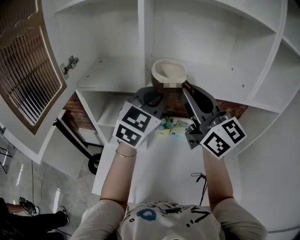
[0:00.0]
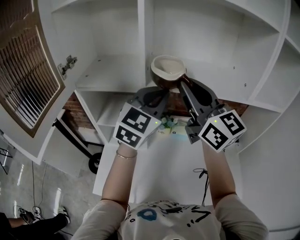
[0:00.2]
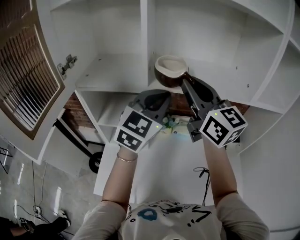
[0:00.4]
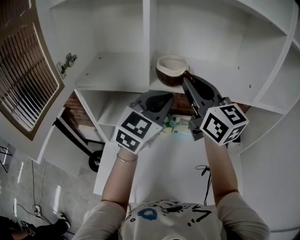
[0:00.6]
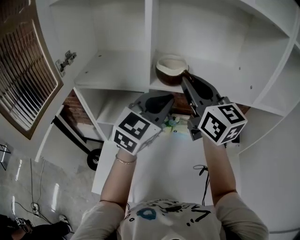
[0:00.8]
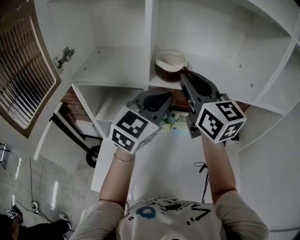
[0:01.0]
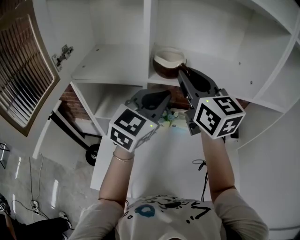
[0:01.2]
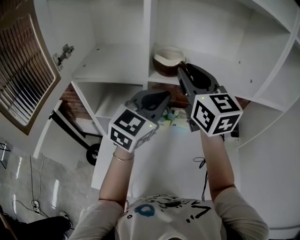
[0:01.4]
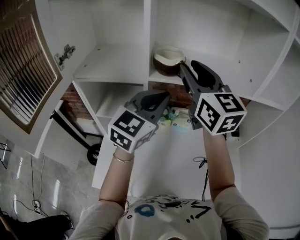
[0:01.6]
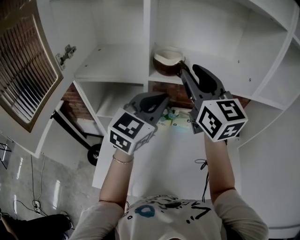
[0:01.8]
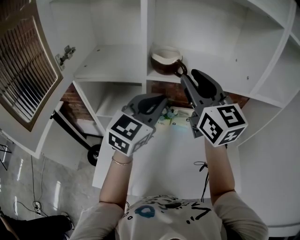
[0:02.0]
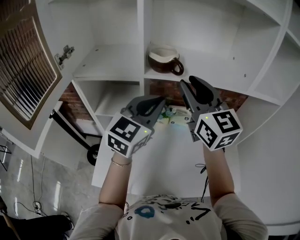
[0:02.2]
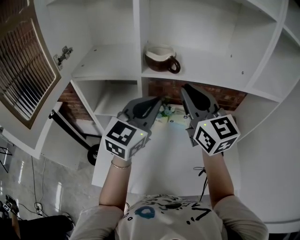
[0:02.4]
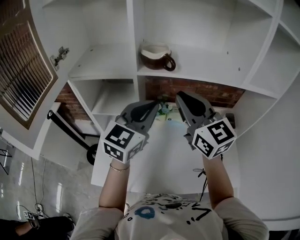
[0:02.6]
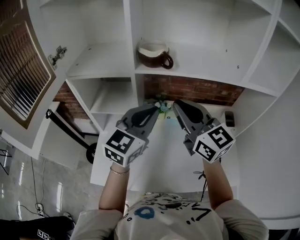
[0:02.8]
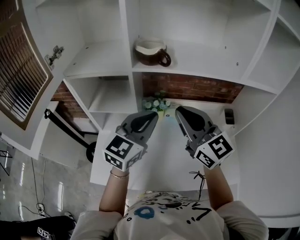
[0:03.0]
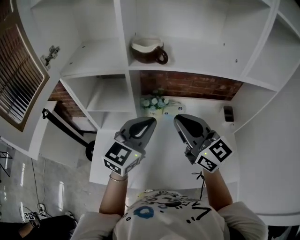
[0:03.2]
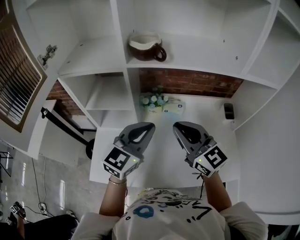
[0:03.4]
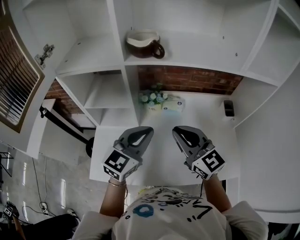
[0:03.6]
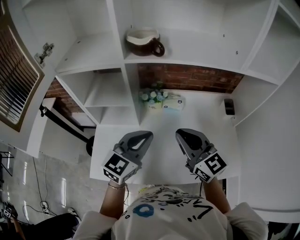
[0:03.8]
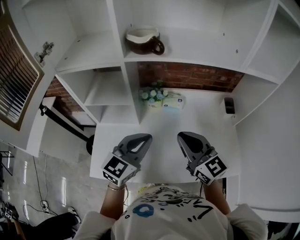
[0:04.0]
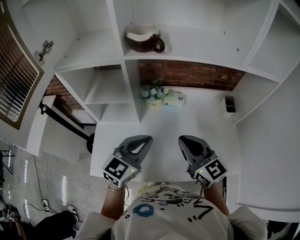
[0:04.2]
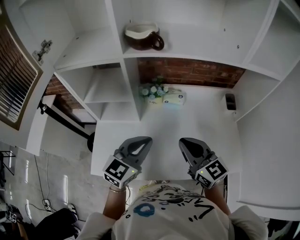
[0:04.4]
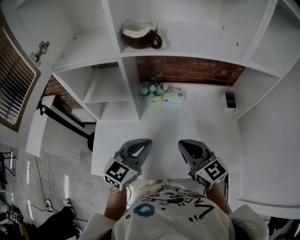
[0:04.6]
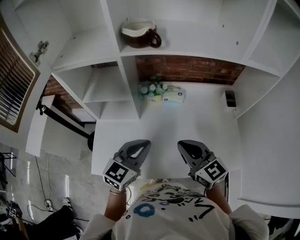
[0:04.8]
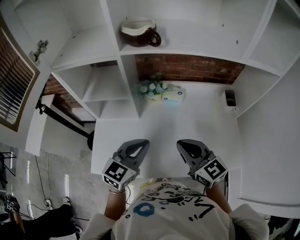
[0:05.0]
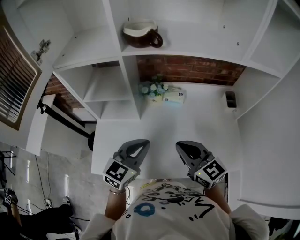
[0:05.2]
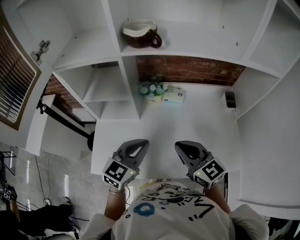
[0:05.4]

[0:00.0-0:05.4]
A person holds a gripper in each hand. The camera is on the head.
0:00.0 to 0:01.4: The right gripper is displaced forward by roughly 10 cm, and rotates approximately 20 degrees.
0:01.4 to 0:02.8: The left gripper is displaced backward by roughly 5 cm. Meanwhile the right gripper goes approximately 15 cm backward and downward.
0:02.8 to 0:04.0: The grippers both shift downward and backward by about 15 cm.
0:04.0 to 0:05.4: The right gripper heads downward, covering roughly 5 cm.

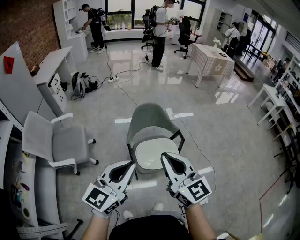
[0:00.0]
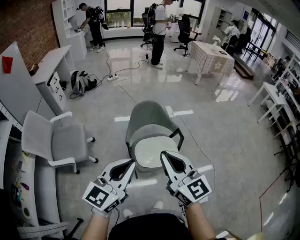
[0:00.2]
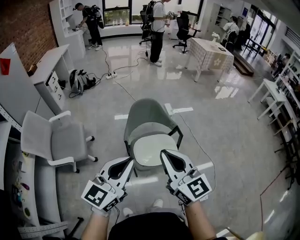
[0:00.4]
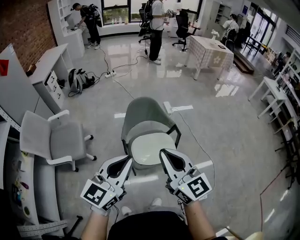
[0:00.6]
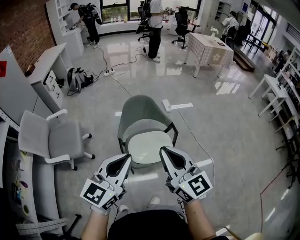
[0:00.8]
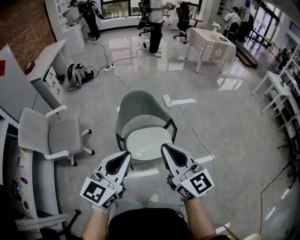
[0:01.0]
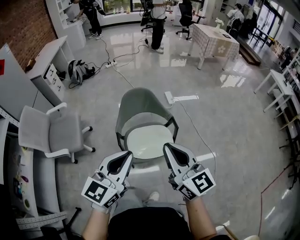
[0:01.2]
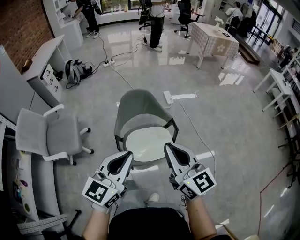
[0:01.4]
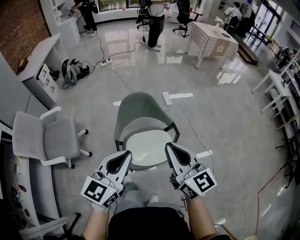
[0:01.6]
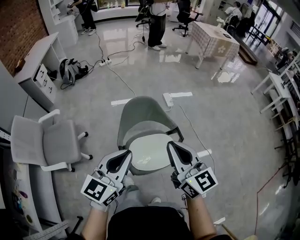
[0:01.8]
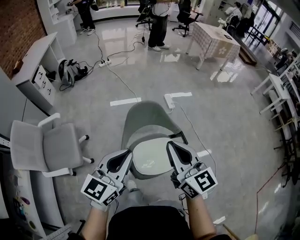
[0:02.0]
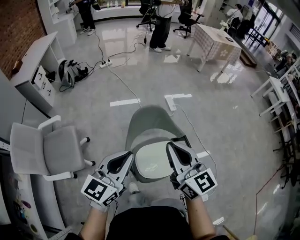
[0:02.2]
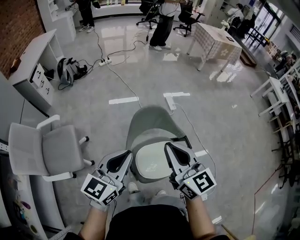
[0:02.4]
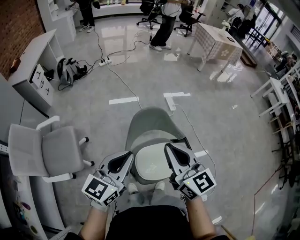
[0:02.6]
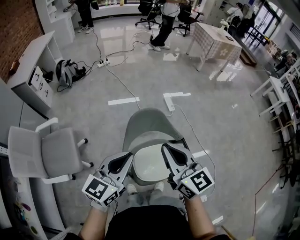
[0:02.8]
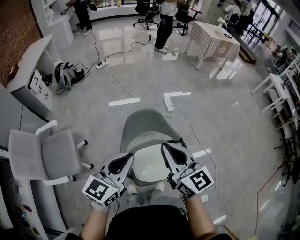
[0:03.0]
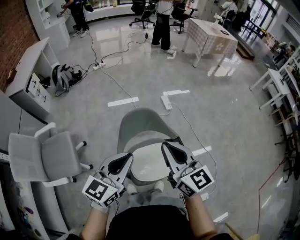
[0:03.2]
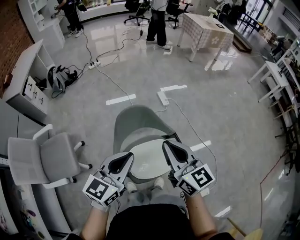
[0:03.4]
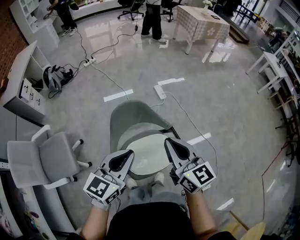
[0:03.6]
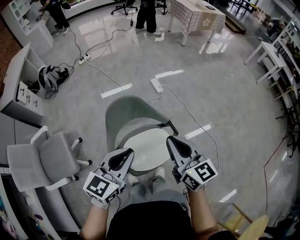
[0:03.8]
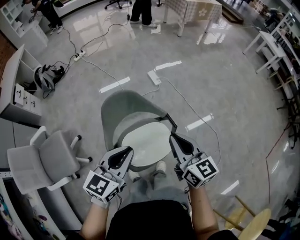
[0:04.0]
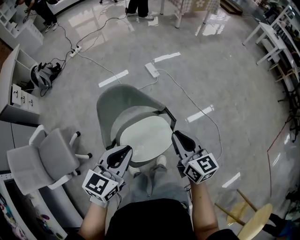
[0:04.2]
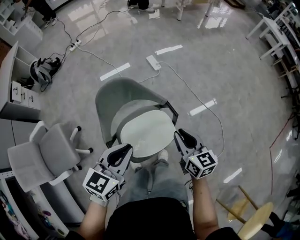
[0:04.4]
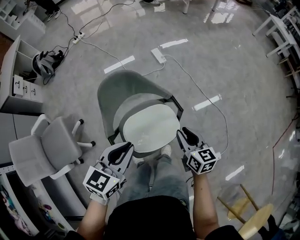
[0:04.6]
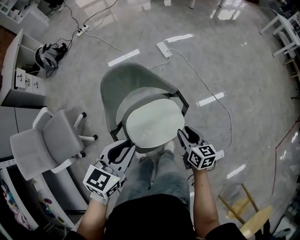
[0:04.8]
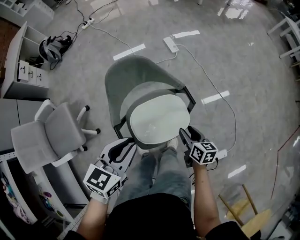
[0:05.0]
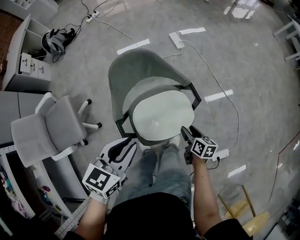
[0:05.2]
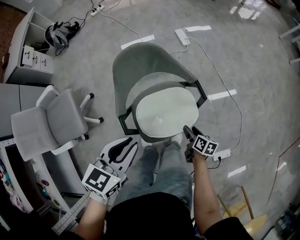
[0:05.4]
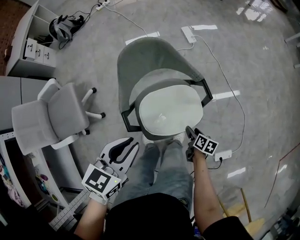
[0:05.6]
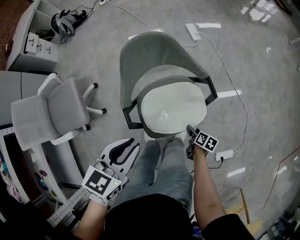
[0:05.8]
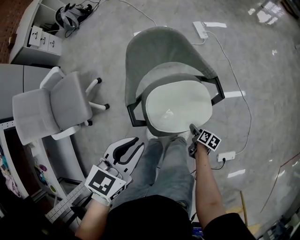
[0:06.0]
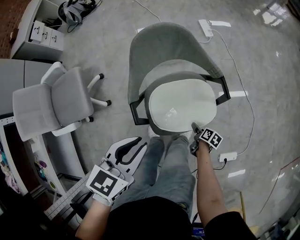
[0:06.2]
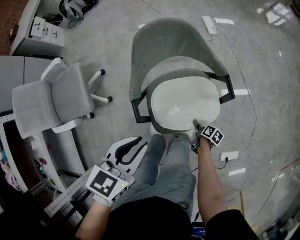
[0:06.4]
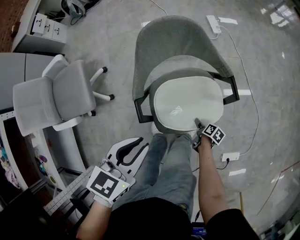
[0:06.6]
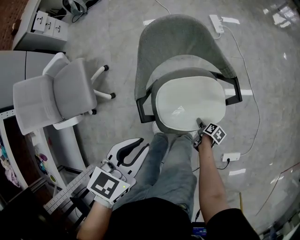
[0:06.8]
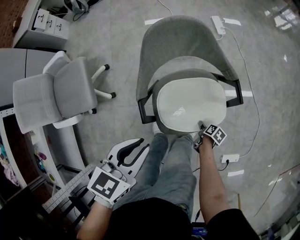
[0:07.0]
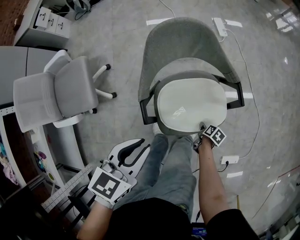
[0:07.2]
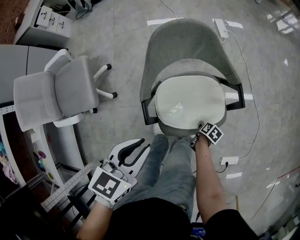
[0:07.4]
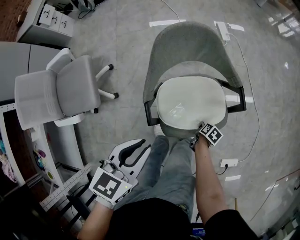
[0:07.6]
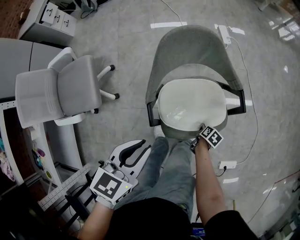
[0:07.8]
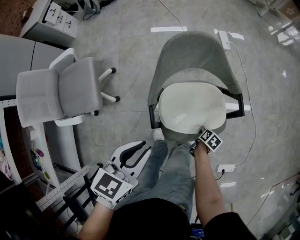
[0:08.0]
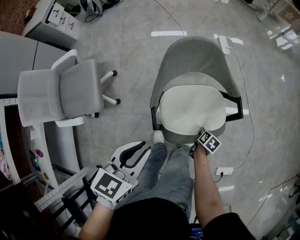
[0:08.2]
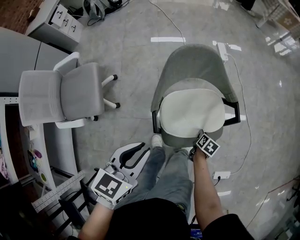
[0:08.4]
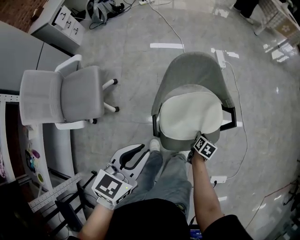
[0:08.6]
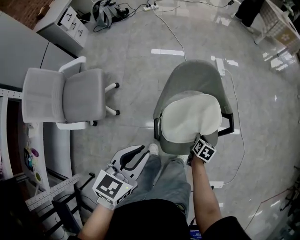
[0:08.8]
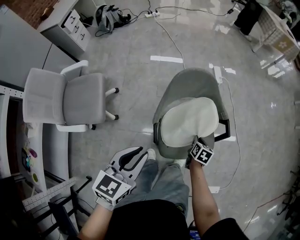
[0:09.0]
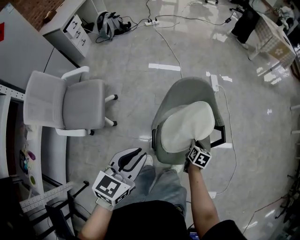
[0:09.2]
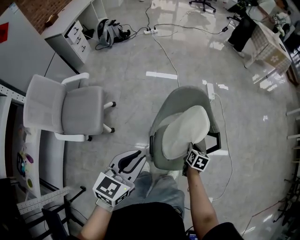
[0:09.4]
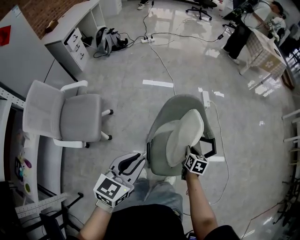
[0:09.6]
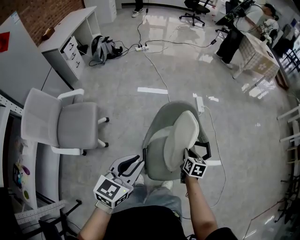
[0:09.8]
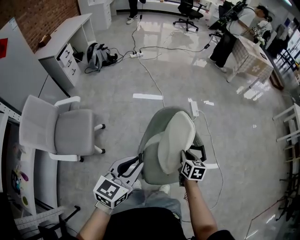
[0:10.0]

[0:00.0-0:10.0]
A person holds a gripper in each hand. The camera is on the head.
0:00.0 to 0:01.4: The two grippers go approximately 15 cm to the right and forward.
0:01.4 to 0:02.8: Both grippers travel together forward and to the left, approximately 25 cm.
0:02.8 to 0:04.2: The right gripper is displaced to the right and downward by about 25 cm, and turns by roughly 20 degrees, while the left gripper goes some 15 cm to the right and downward.
0:04.2 to 0:05.8: The right gripper is displaced downward by some 40 cm, angles its fingers downward, by some 40 degrees, and opens. The left gripper is displaced downward, backward and to the left by roughly 15 cm.
0:05.8 to 0:07.2: The left gripper ends up about 5 cm from where it was; the right gripper shifts roughly 10 cm downward.
0:07.2 to 0:08.6: The right gripper goes roughly 15 cm upward, forward and to the left, changes its angle by some 30 degrees, and closes up, while the left gripper heads upward and to the left, covering approximately 5 cm.
0:08.6 to 0:10.0: The left gripper travels upward by some 10 cm; the right gripper is displaced upward by some 25 cm, and changes its angle by approximately 30 degrees.

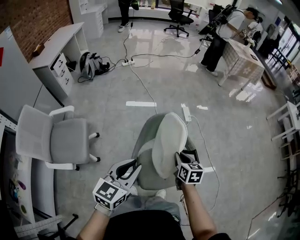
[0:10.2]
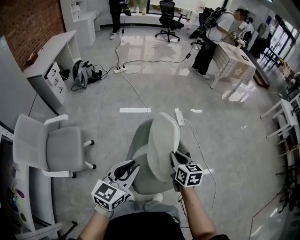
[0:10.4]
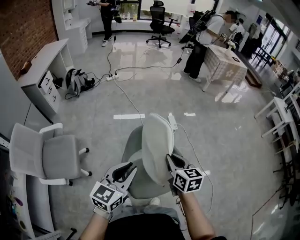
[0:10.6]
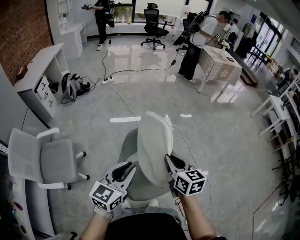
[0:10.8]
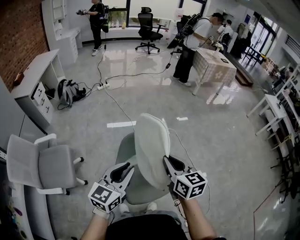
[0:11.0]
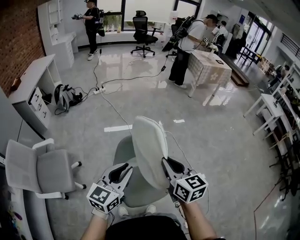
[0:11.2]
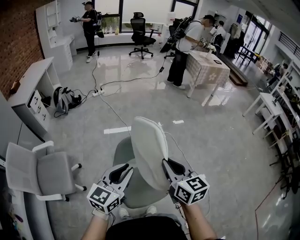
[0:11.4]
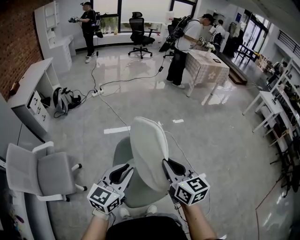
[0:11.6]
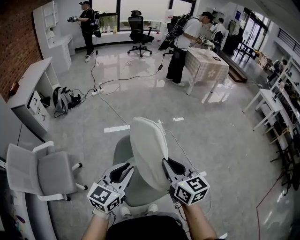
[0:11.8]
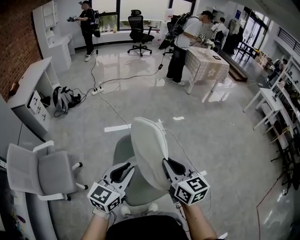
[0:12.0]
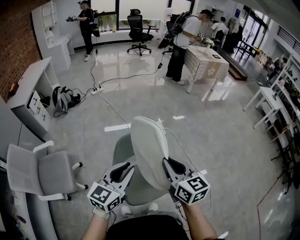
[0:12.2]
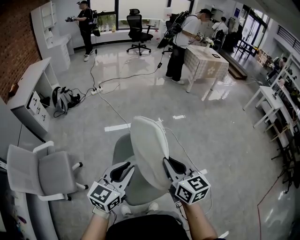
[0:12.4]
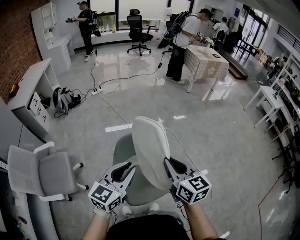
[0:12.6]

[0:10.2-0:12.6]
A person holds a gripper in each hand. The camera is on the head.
0:10.2 to 0:11.4: The right gripper shifts roughly 25 cm upward, and changes its angle by about 20 degrees; the left gripper travels to the right, upward and forward by approximately 15 cm.
0:11.4 to 0:12.6: There are only small adjustments of the grippers.

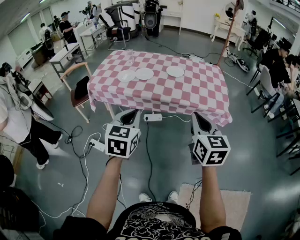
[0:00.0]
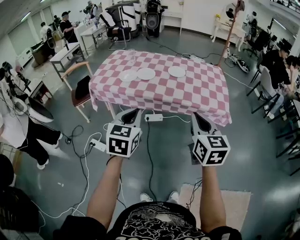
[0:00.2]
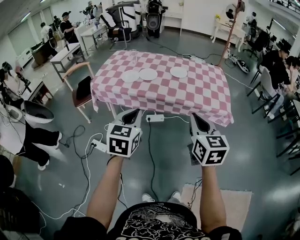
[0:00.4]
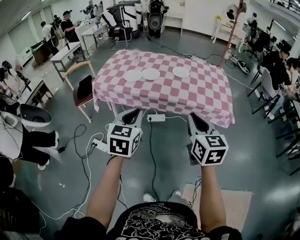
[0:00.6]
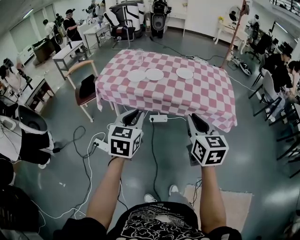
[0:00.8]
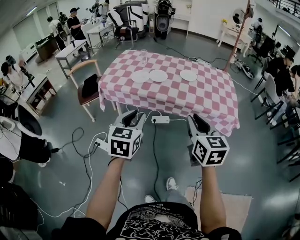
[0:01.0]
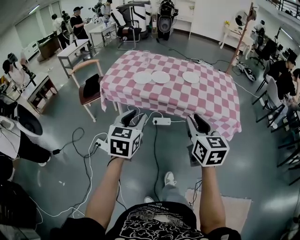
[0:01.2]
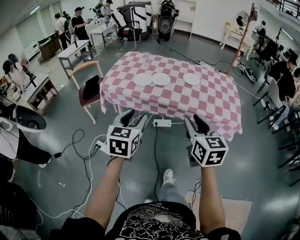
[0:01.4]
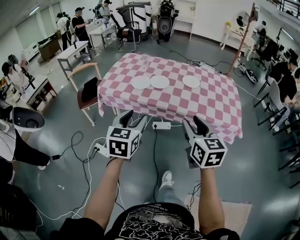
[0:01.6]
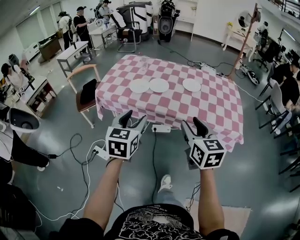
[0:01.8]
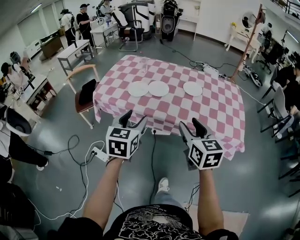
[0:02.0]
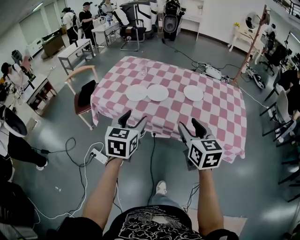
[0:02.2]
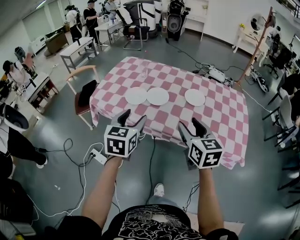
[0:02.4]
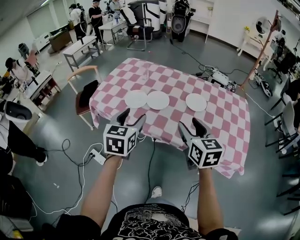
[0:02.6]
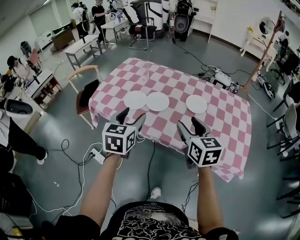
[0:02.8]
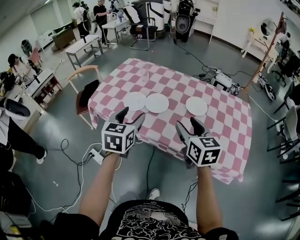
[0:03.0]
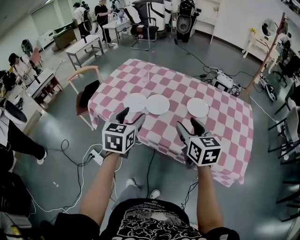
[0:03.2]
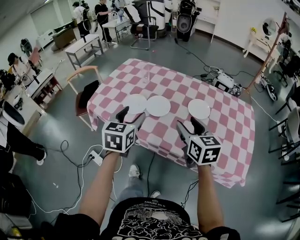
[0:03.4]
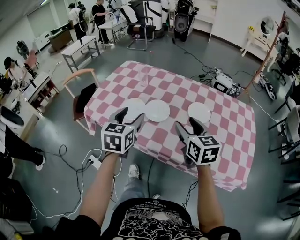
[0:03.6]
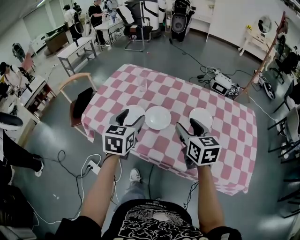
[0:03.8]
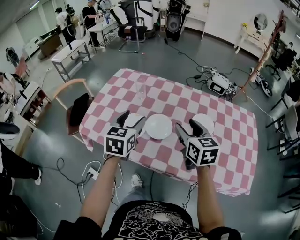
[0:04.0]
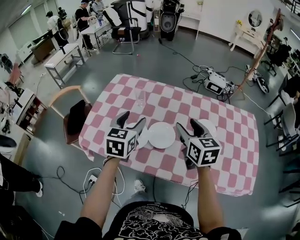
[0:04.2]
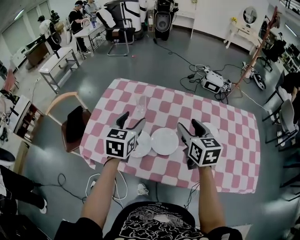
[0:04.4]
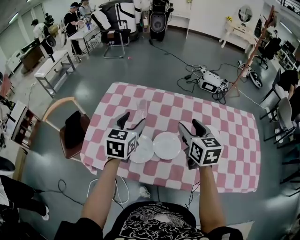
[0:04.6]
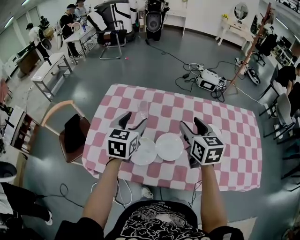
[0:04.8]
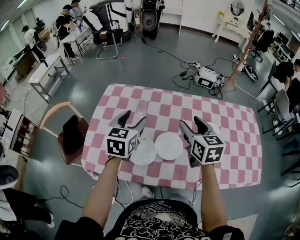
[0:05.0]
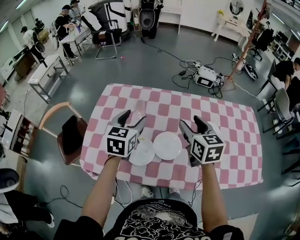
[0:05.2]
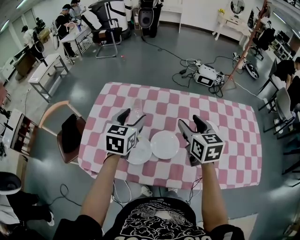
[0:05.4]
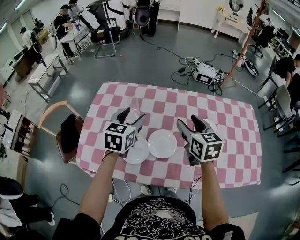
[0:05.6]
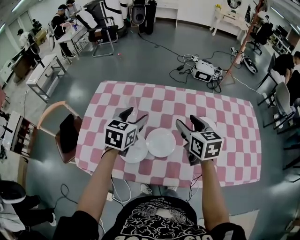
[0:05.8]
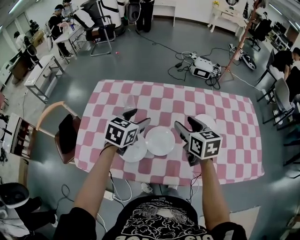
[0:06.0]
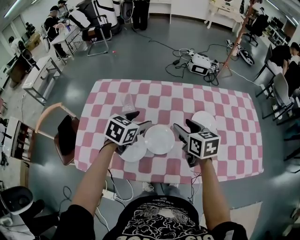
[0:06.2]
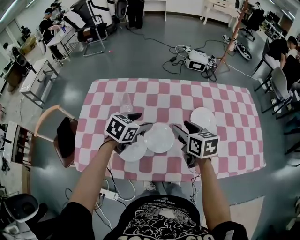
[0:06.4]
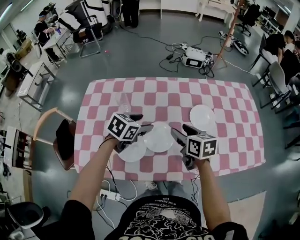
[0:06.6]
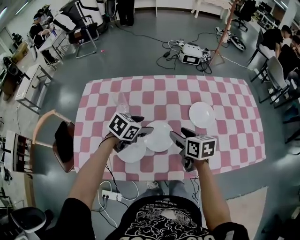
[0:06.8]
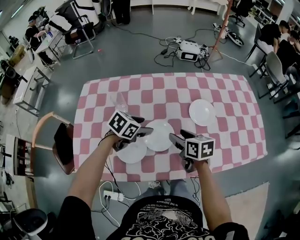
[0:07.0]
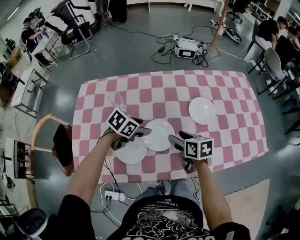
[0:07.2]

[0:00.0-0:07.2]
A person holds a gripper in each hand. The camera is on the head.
0:00.0 to 0:01.4: The grippers both shift to the left by approximately 10 cm. The left gripper opens its fingers. Meanwhile the right gripper opens its fingers.
0:01.4 to 0:02.8: Both grippers travel together forward, about 30 cm.
0:02.8 to 0:04.4: Both grippers move forward, some 30 cm.
0:04.4 to 0:05.8: The left gripper is displaced forward by approximately 5 cm.
0:05.8 to 0:07.2: The left gripper heads downward, covering about 15 cm, and rotates approximately 50 degrees. The right gripper is displaced downward and backward by about 15 cm, and swivels some 30 degrees.
